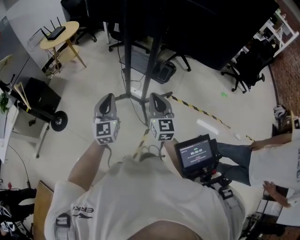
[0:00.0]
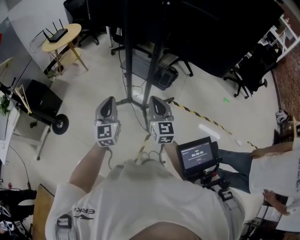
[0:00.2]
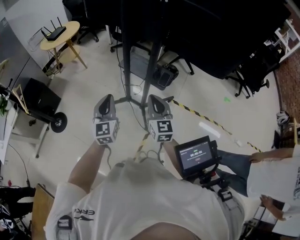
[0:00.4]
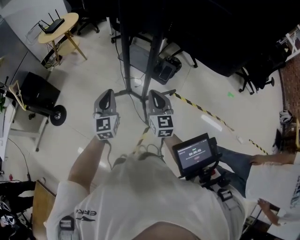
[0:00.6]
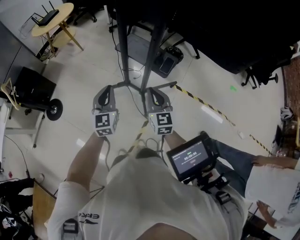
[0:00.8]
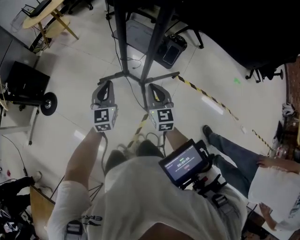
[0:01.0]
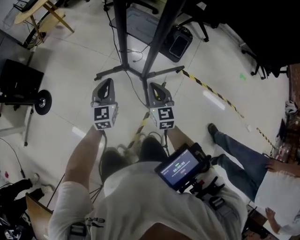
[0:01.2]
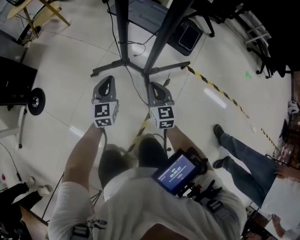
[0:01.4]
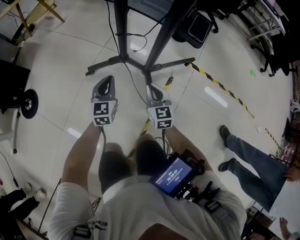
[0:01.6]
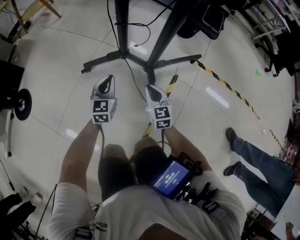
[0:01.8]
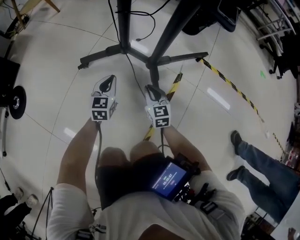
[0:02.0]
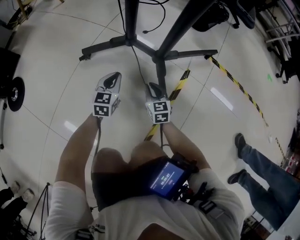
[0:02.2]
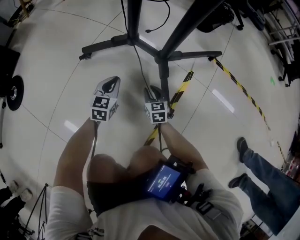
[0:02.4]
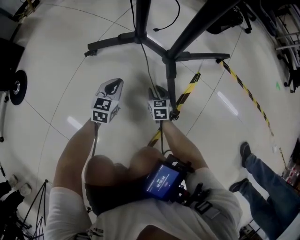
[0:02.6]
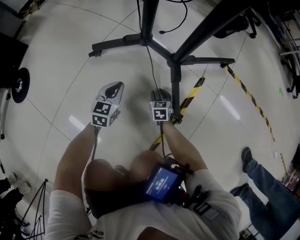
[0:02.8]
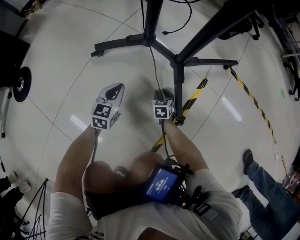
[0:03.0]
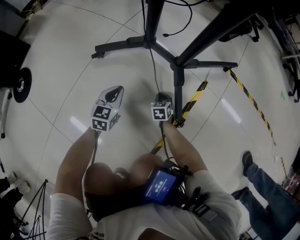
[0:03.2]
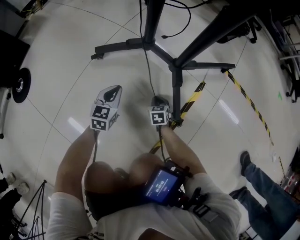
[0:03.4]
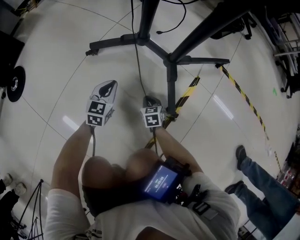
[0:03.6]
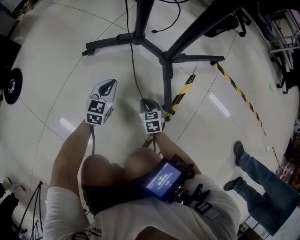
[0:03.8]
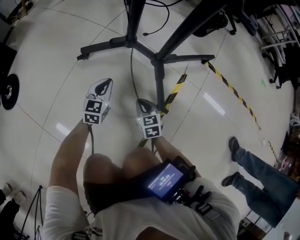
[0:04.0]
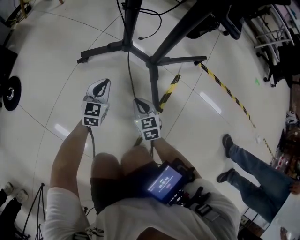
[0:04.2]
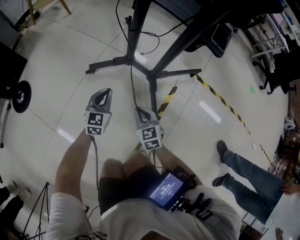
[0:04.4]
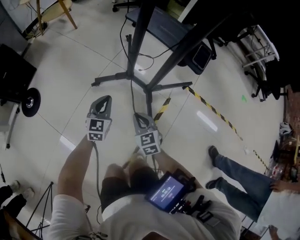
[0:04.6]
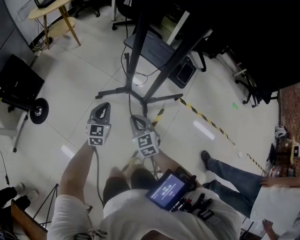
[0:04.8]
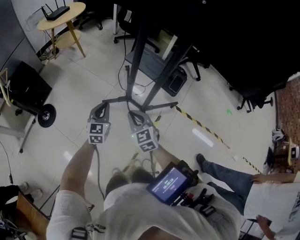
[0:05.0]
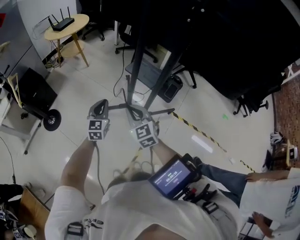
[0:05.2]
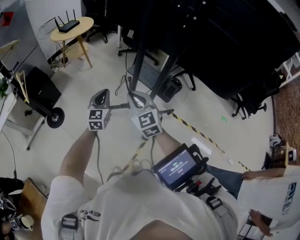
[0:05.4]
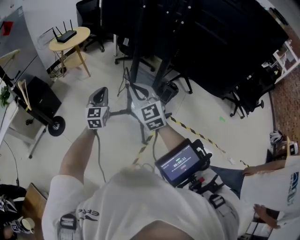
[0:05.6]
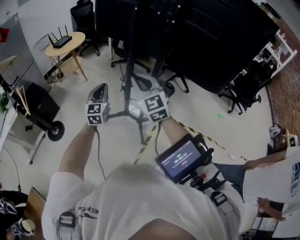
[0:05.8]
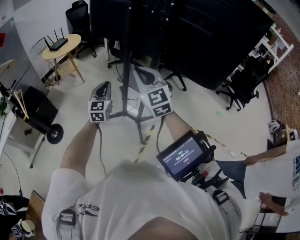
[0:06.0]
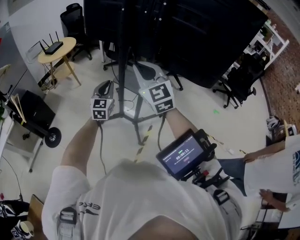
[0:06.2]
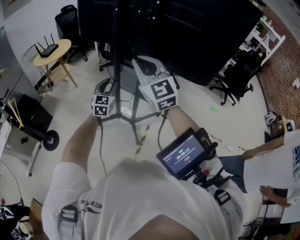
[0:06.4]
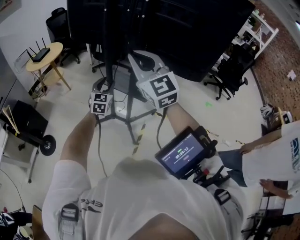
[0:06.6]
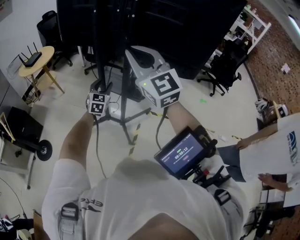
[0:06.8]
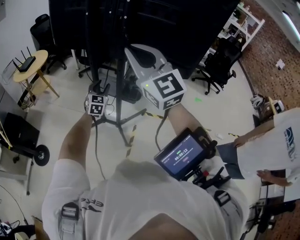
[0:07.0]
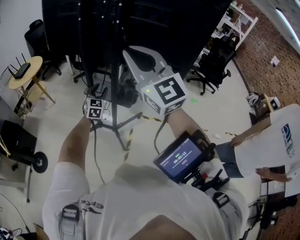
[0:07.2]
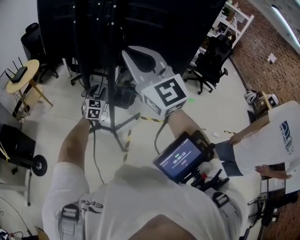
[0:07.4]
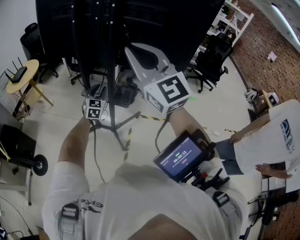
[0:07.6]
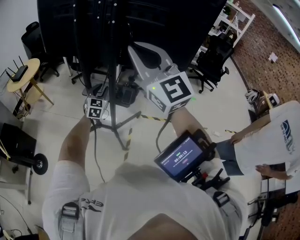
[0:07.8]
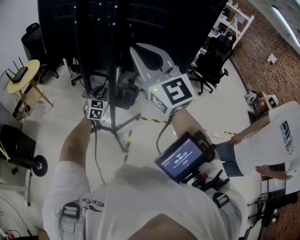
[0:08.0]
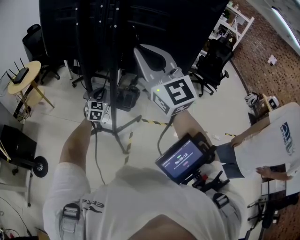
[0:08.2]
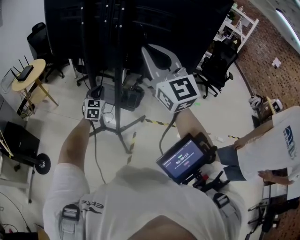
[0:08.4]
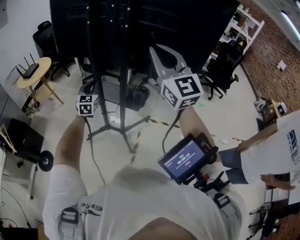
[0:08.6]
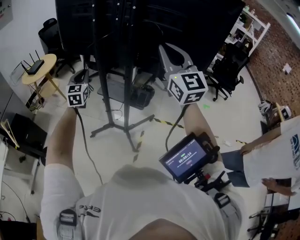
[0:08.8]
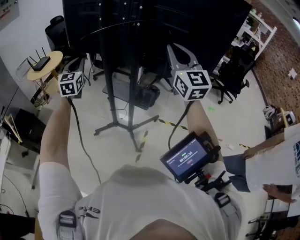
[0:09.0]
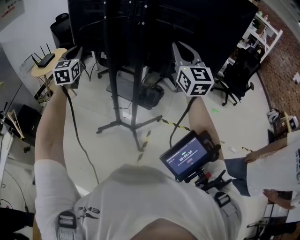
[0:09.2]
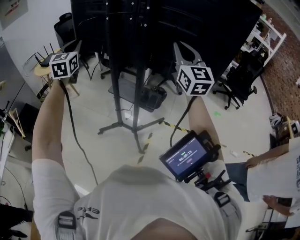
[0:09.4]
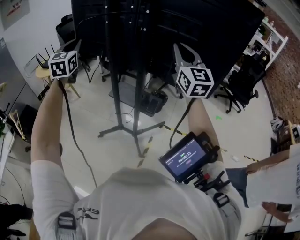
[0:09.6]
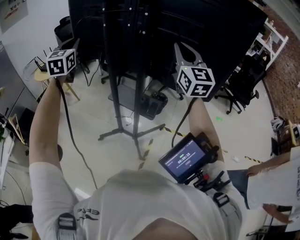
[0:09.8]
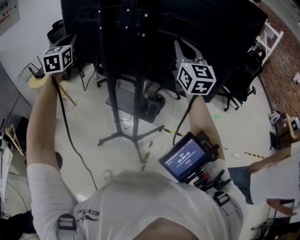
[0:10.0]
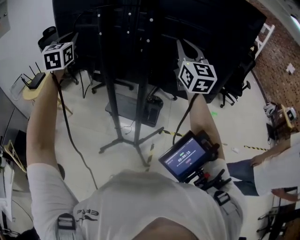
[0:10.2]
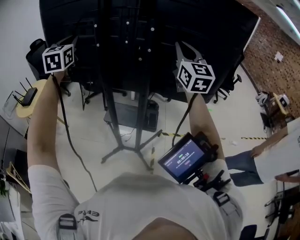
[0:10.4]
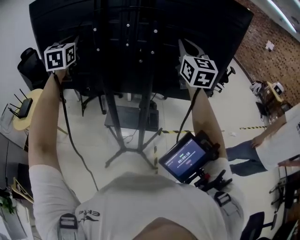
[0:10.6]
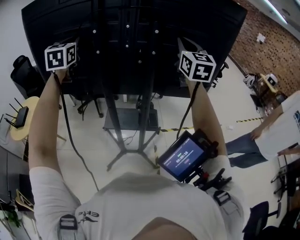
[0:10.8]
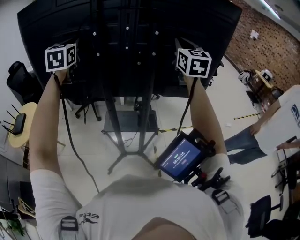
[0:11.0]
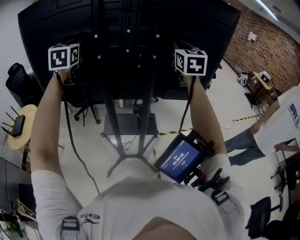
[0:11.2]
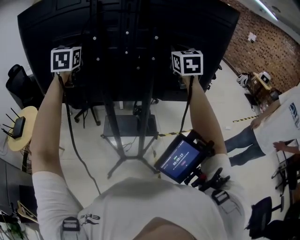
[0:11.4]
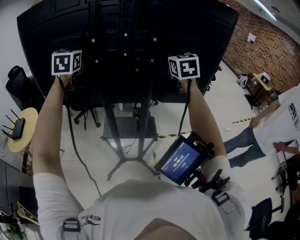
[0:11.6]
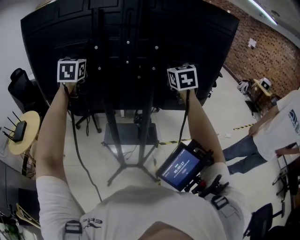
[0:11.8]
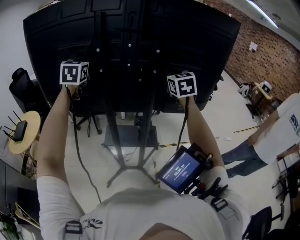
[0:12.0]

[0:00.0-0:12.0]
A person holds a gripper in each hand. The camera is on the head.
0:00.0 to 0:01.6: The two grippers go roughly 60 cm downward. The right gripper turns by some 20 degrees.
0:01.6 to 0:03.0: The two grippers go roughly 35 cm downward. The right gripper changes its angle by approximately 30 degrees, and opens.
0:03.0 to 0:04.4: The left gripper travels upward by about 20 cm. The right gripper moves upward, approximately 30 cm, turns by approximately 20 degrees, and closes its fingers.
0:04.4 to 0:06.0: Both grippers move upward, roughly 70 cm. The right gripper tilts its fingers about 30 degrees upward; the left gripper changes its angle by some 20 degrees.
0:06.0 to 0:07.6: The right gripper travels upward and to the right by about 20 cm. Meanwhile the left gripper heads to the right and forward, covering some 20 cm, swivels some 20 degrees, and opens its fingers.
0:07.6 to 0:09.0: The right gripper travels to the right and forward by roughly 10 cm. The left gripper moves to the left and upward, some 30 cm, and closes.
0:09.0 to 0:10.4: The left gripper is displaced forward and upward by about 25 cm, while the right gripper goes about 15 cm forward, and turns by about 20 degrees.
0:10.4 to 0:12.0: The left gripper travels forward by some 10 cm. Meanwhile the right gripper goes roughly 10 cm downward and forward, and turns by roughly 30 degrees.

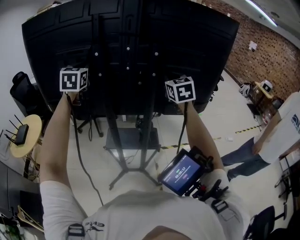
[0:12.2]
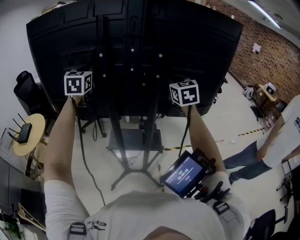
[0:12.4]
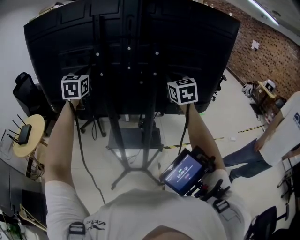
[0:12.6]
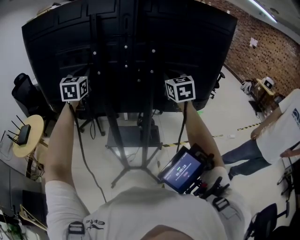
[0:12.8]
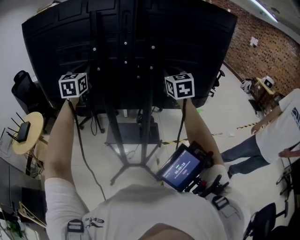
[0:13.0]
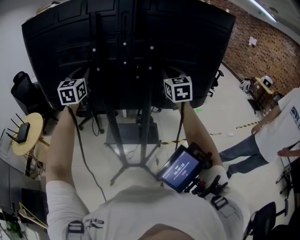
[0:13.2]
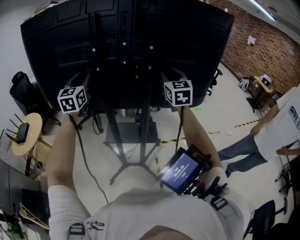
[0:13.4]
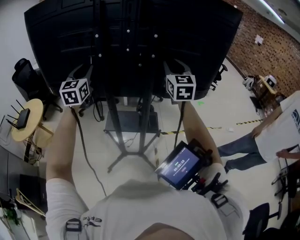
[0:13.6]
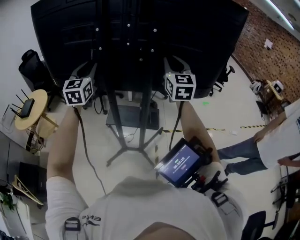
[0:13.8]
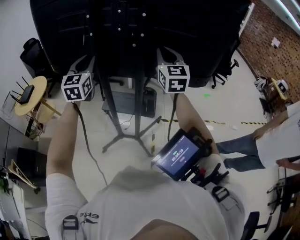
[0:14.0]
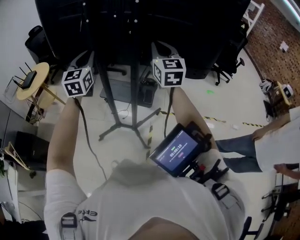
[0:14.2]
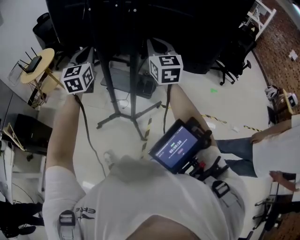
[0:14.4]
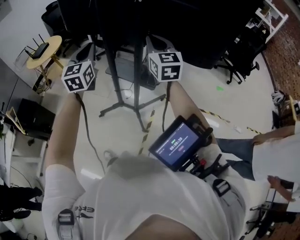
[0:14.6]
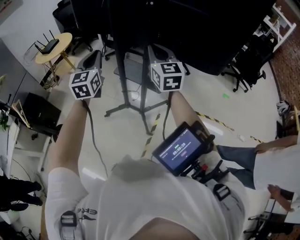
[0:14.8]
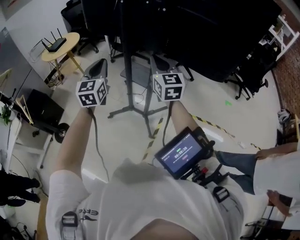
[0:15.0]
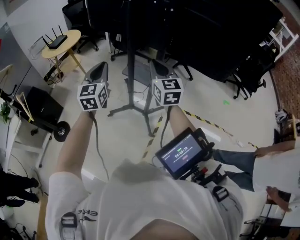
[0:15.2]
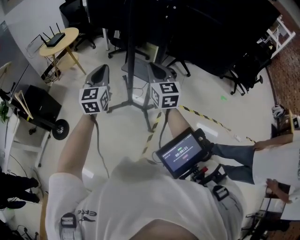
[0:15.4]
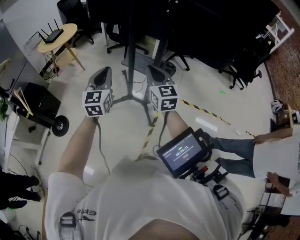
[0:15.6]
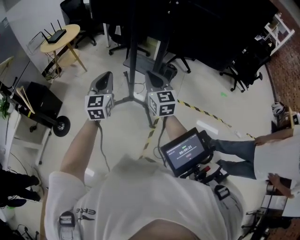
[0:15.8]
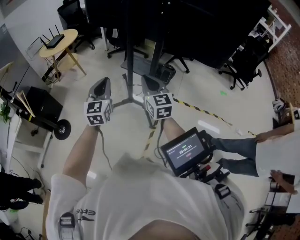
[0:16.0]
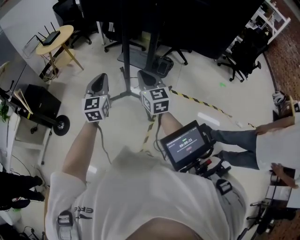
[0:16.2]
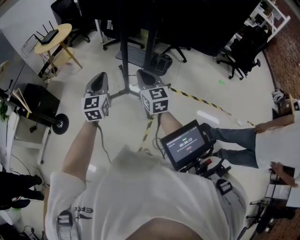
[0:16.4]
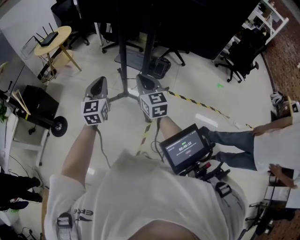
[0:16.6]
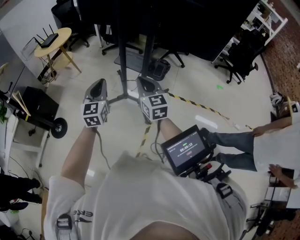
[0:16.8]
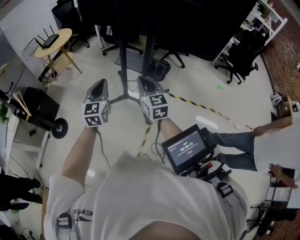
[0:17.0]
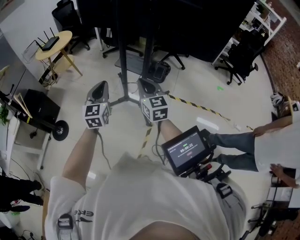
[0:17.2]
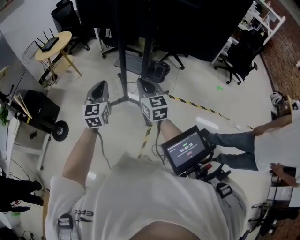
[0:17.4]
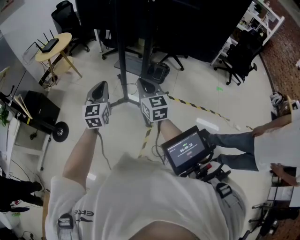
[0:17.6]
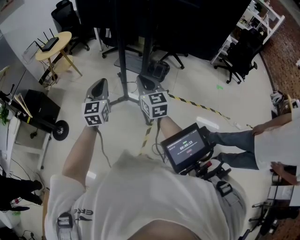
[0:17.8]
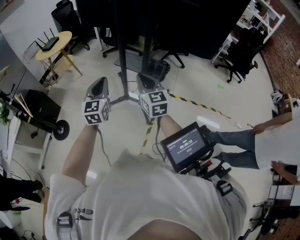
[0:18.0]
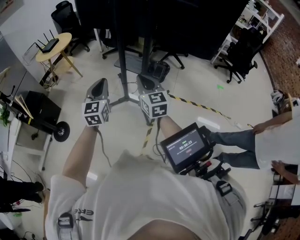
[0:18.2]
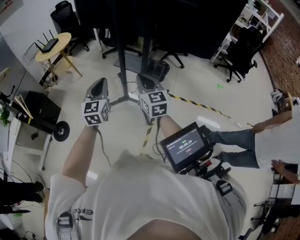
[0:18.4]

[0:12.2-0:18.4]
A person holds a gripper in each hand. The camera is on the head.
0:12.2 to 0:13.8: The left gripper is displaced backward and downward by about 15 cm; the right gripper travels backward by roughly 5 cm.
0:13.8 to 0:15.4: The left gripper changes place by approximately 35 cm, turns by about 20 degrees, and closes its fingers. The right gripper shifts by roughly 30 cm, and turns by some 30 degrees.
0:15.4 to 0:16.8: Both grippers move backward and downward, some 10 cm.
0:16.8 to 0:18.4: The grippers move only a little.

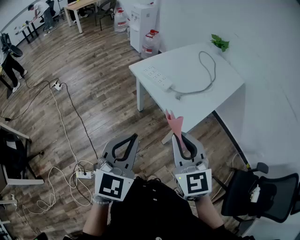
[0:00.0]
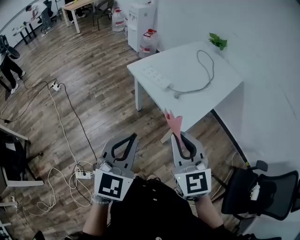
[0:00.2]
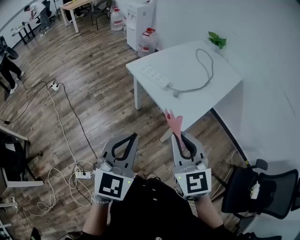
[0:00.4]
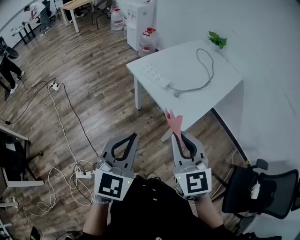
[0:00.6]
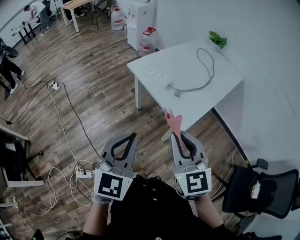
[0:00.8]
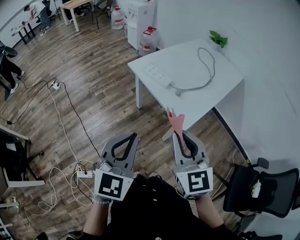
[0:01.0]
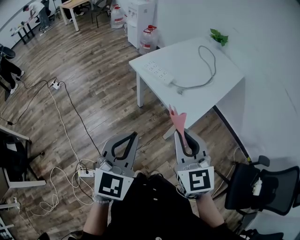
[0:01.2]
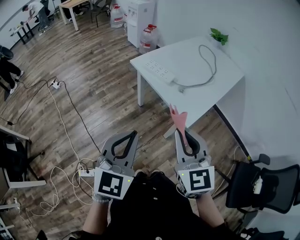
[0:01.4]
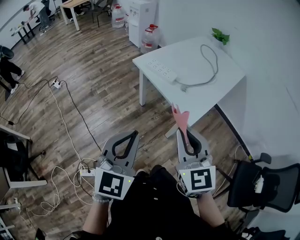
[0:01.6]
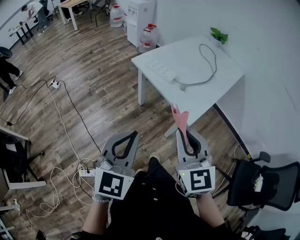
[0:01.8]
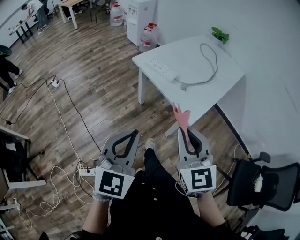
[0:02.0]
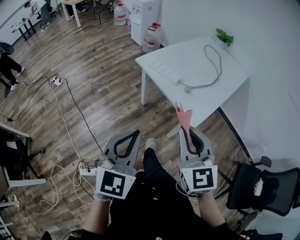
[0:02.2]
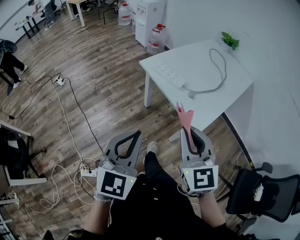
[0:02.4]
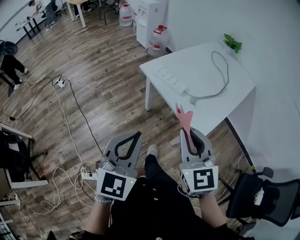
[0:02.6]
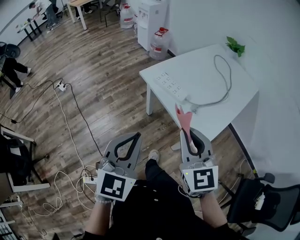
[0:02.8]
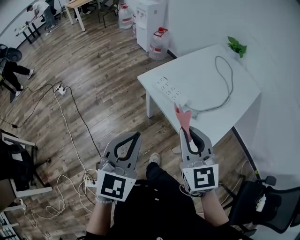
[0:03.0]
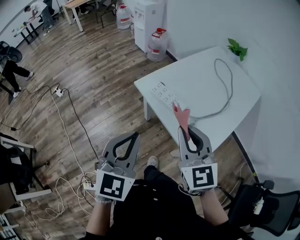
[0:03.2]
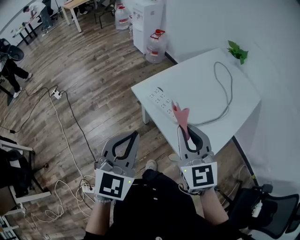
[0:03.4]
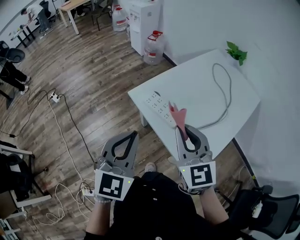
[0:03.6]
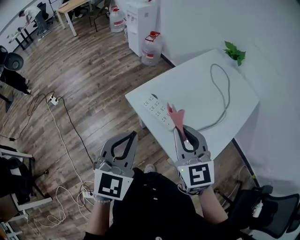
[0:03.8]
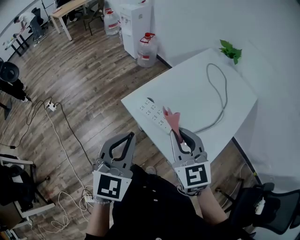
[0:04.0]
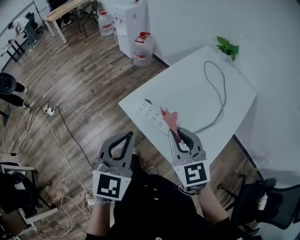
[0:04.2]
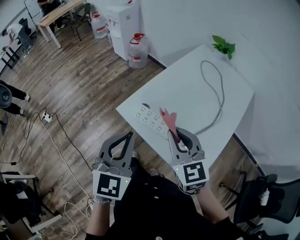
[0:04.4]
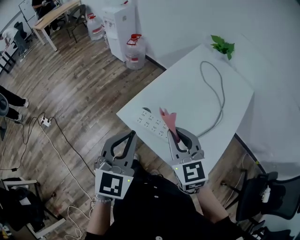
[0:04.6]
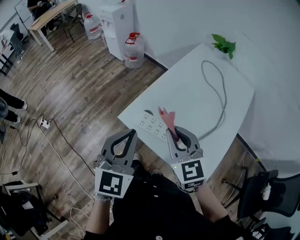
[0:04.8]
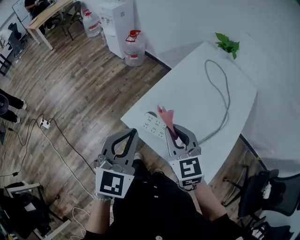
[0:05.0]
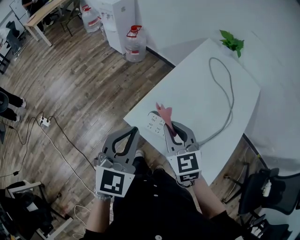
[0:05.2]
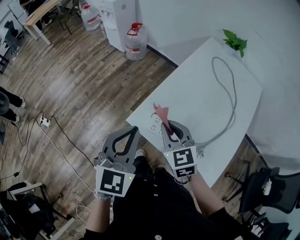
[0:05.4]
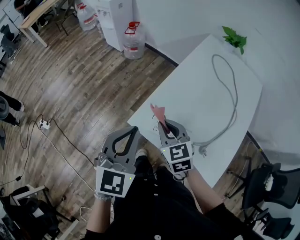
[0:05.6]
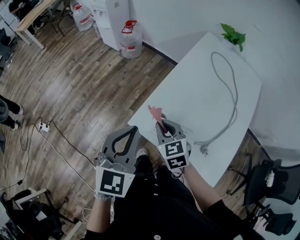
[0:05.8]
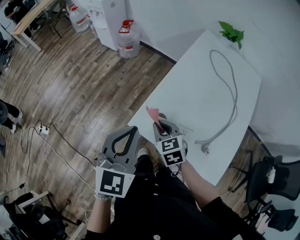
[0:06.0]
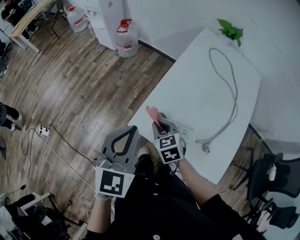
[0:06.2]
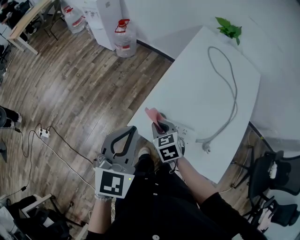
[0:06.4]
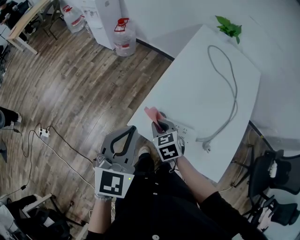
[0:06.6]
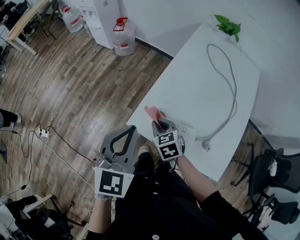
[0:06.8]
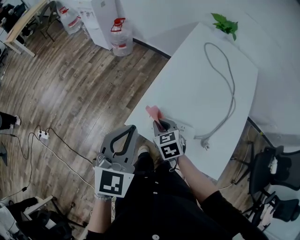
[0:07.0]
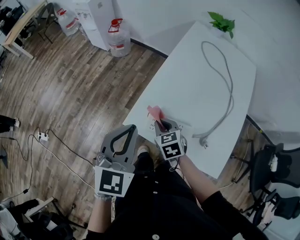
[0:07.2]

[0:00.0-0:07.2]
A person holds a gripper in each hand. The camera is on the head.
0:00.0 to 0:01.4: The grippers stay close to where they were, moving slightly.
0:01.4 to 0:02.8: The grippers both shift forward by approximately 15 cm.
0:02.8 to 0:04.4: The two grippers go roughly 25 cm forward.
0:04.4 to 0:05.8: The right gripper shifts some 25 cm downward, forward and to the left, and swivels roughly 20 degrees. The left gripper goes approximately 15 cm forward and to the left.
0:05.8 to 0:07.2: The right gripper goes roughly 5 cm downward.
